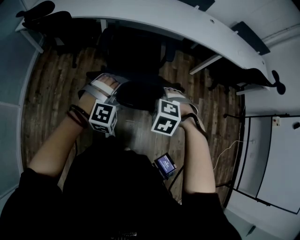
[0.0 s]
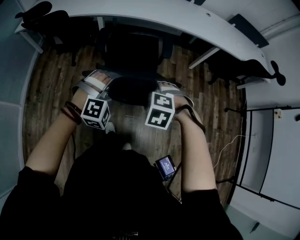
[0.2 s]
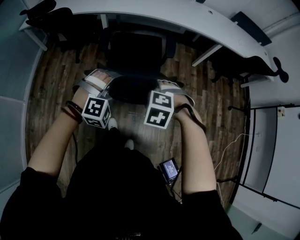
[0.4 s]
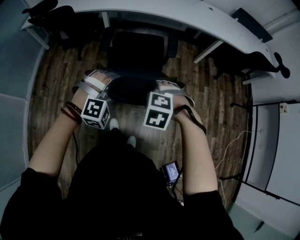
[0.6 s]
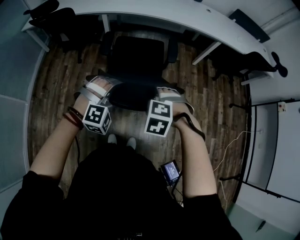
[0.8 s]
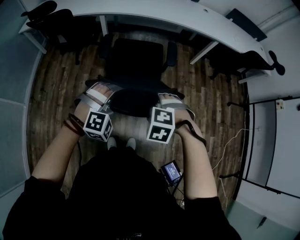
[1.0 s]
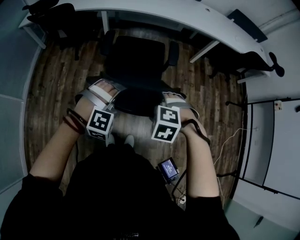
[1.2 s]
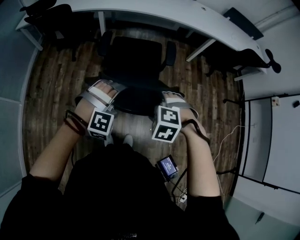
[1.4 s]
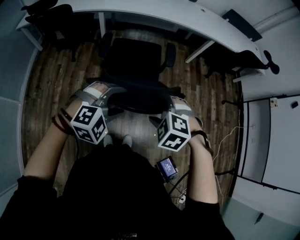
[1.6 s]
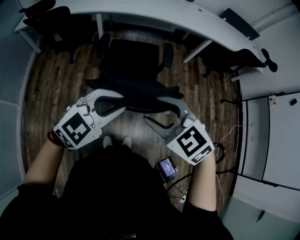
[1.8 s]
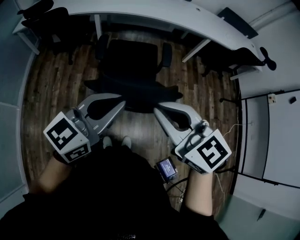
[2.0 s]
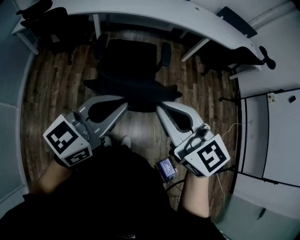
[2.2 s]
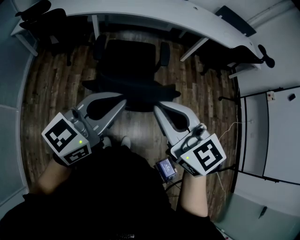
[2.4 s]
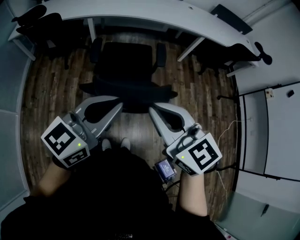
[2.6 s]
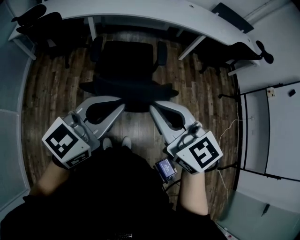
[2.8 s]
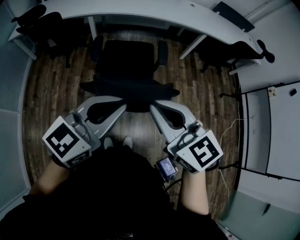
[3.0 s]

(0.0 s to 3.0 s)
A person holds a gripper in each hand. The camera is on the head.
0.0 s - 1.6 s: The two grippers go roughly 20 cm backward. The left gripper rotates approximately 20 degrees.
1.6 s - 3.0 s: The two grippers go some 15 cm upward. The right gripper tilts its fingers some 50 degrees upward, and closes up; the left gripper twists roughly 50 degrees counterclockwise, seen from behind, and closes its fingers.

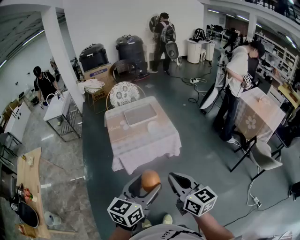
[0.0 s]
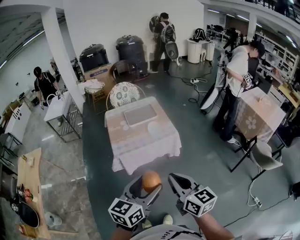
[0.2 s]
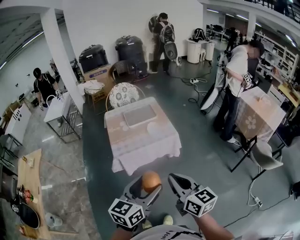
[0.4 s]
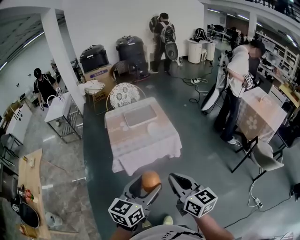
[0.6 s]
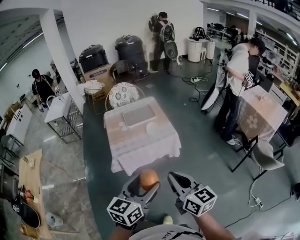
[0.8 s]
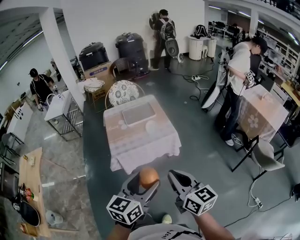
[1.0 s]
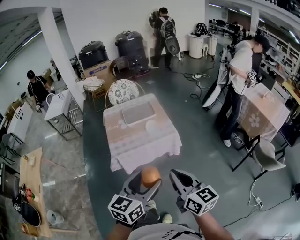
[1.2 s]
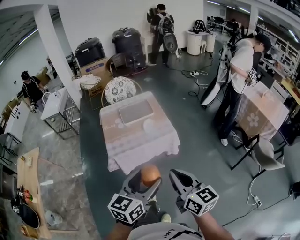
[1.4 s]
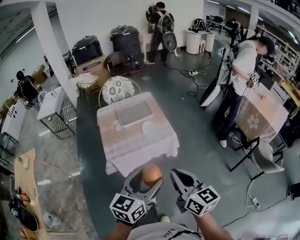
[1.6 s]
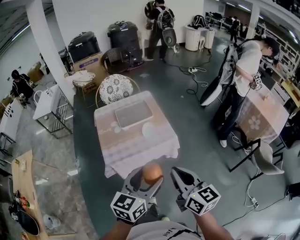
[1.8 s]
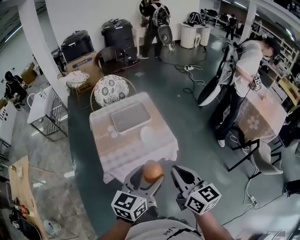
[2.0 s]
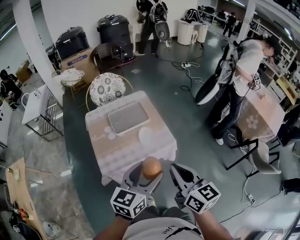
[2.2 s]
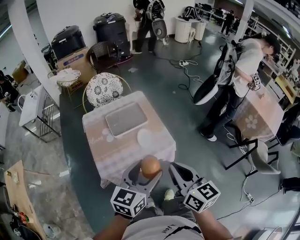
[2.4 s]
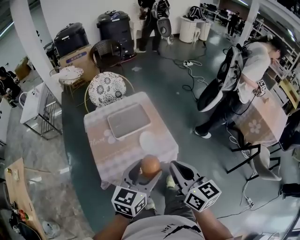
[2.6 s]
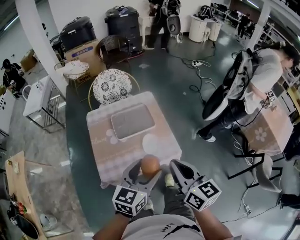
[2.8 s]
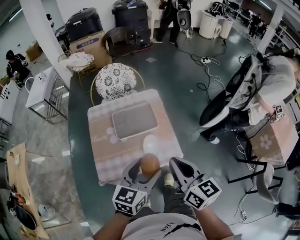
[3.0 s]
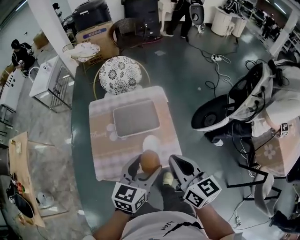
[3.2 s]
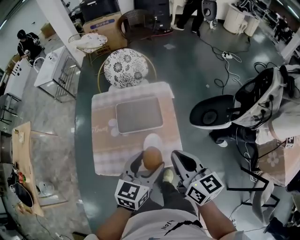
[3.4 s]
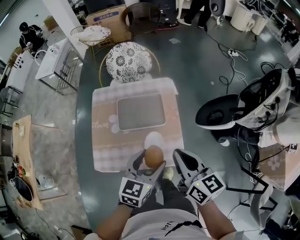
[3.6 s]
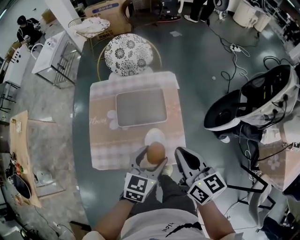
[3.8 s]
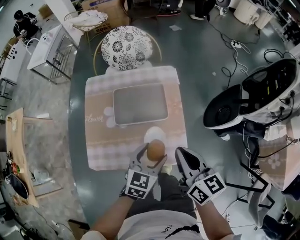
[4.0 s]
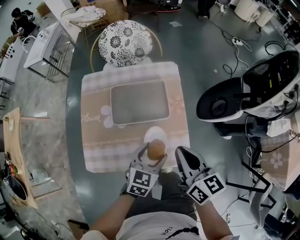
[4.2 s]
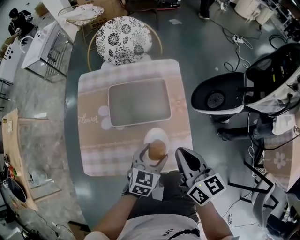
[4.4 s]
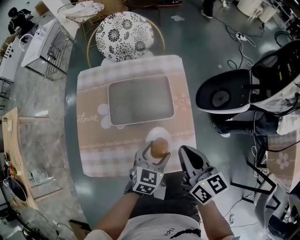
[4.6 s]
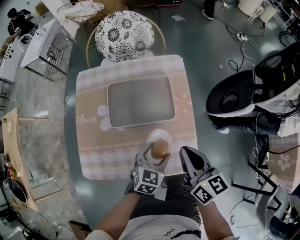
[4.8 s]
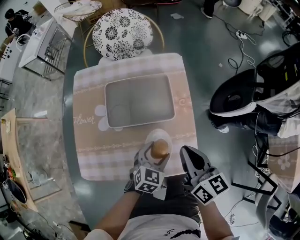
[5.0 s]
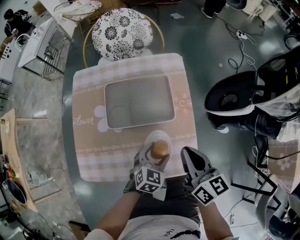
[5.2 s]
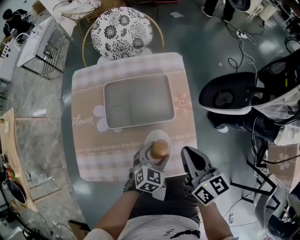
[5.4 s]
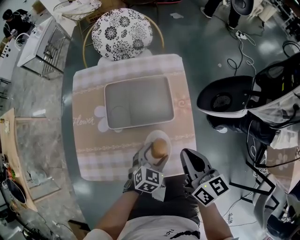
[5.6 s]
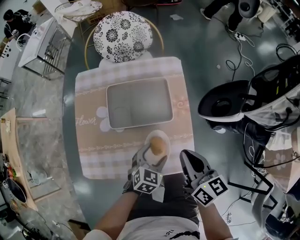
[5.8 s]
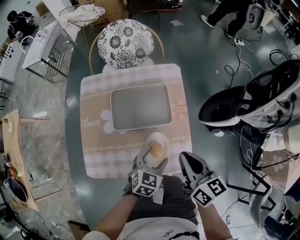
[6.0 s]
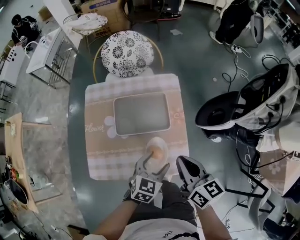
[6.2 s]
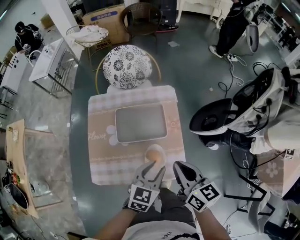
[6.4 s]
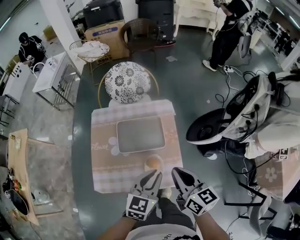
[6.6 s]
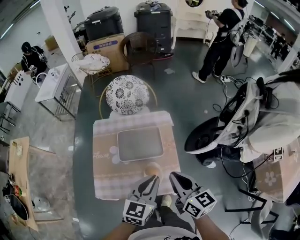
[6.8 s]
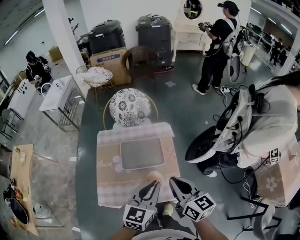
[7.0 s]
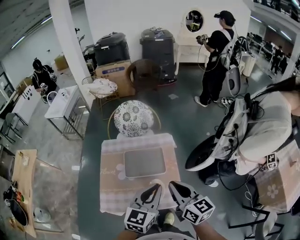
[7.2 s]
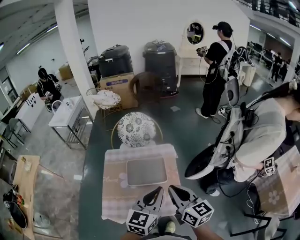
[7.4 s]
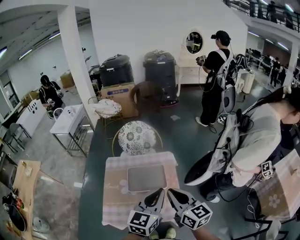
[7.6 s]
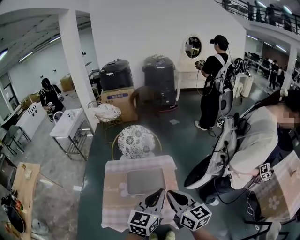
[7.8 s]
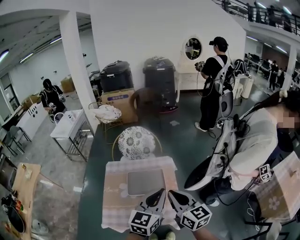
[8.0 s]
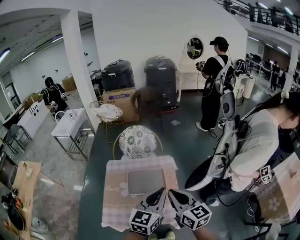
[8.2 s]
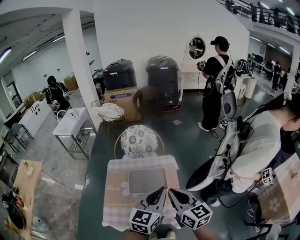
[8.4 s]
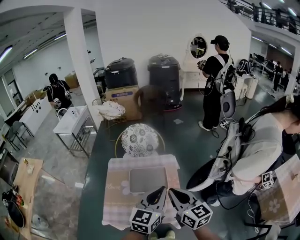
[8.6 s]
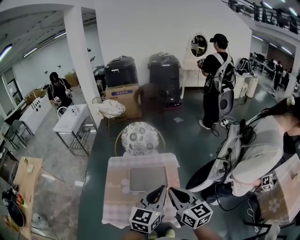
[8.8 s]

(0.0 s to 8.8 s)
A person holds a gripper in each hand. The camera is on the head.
0.0 s - 1.4 s: Both grippers travel together forward, roughly 5 cm.
1.4 s - 3.0 s: The two grippers go some 35 cm forward.
3.0 s - 4.4 s: Both grippers move downward and forward, about 25 cm.
4.4 s - 5.8 s: The left gripper heads downward, covering some 5 cm.
5.8 s - 7.4 s: The right gripper goes some 25 cm upward, and turns by roughly 20 degrees, while the left gripper shifts some 40 cm upward, tilts its fingers some 30 degrees upward, and closes.
7.4 s - 8.8 s: The grippers move only a little.

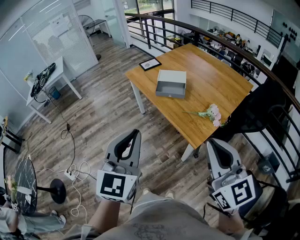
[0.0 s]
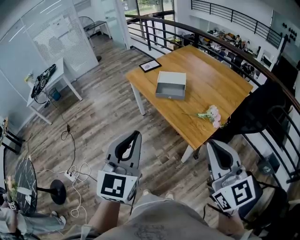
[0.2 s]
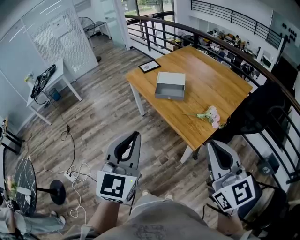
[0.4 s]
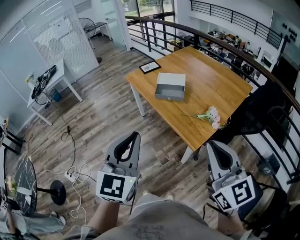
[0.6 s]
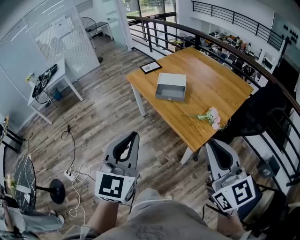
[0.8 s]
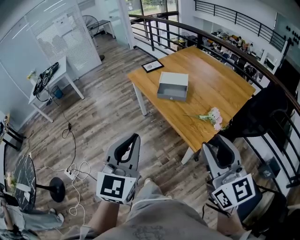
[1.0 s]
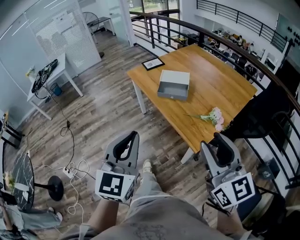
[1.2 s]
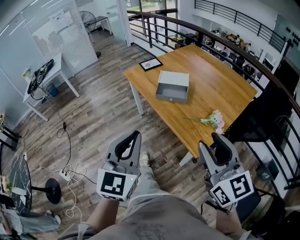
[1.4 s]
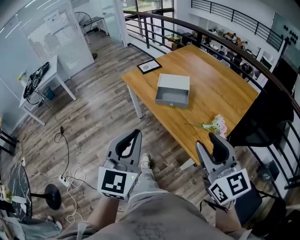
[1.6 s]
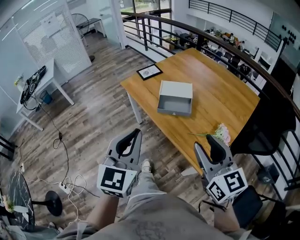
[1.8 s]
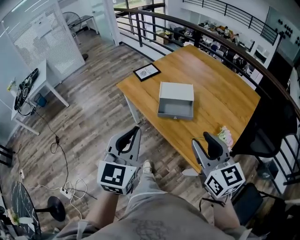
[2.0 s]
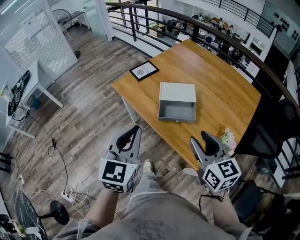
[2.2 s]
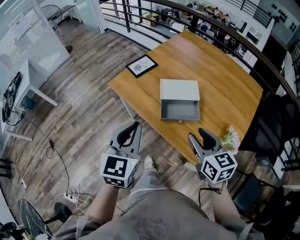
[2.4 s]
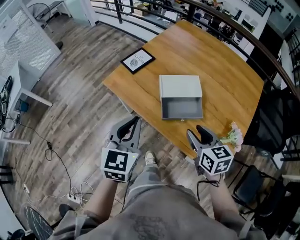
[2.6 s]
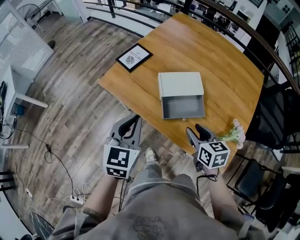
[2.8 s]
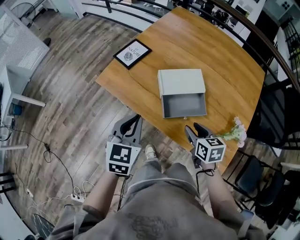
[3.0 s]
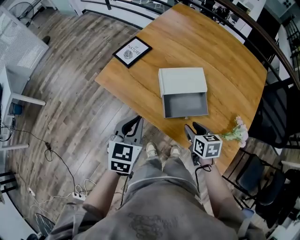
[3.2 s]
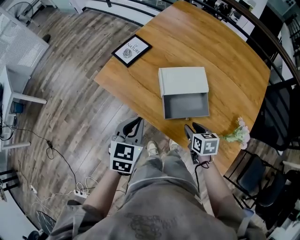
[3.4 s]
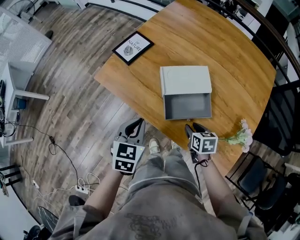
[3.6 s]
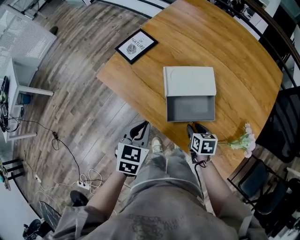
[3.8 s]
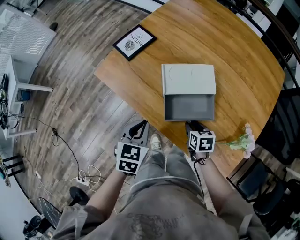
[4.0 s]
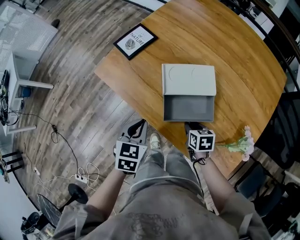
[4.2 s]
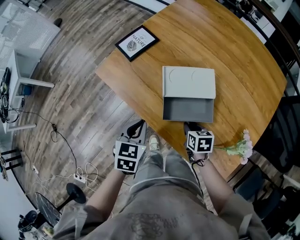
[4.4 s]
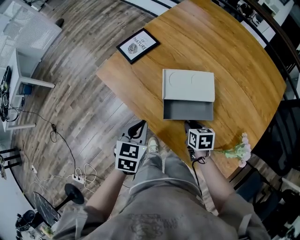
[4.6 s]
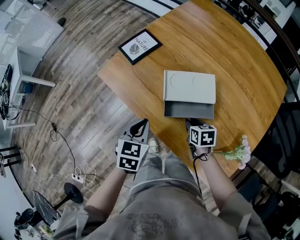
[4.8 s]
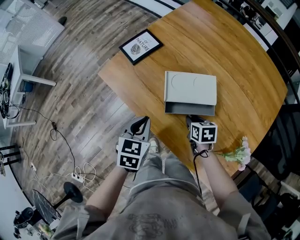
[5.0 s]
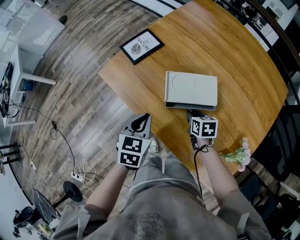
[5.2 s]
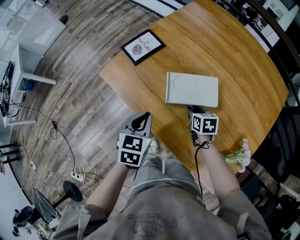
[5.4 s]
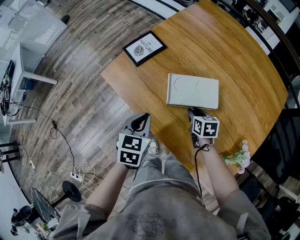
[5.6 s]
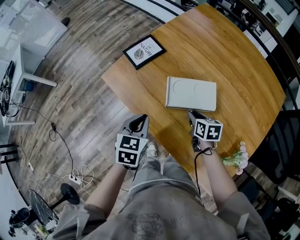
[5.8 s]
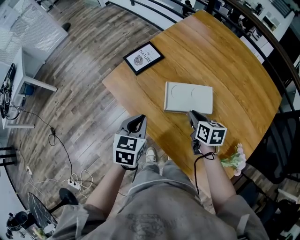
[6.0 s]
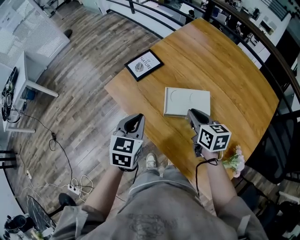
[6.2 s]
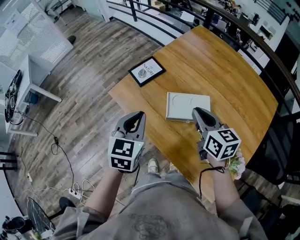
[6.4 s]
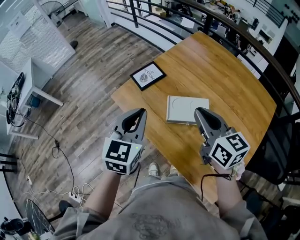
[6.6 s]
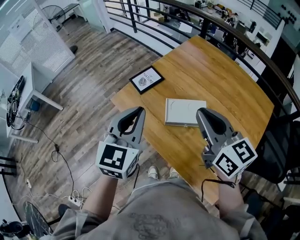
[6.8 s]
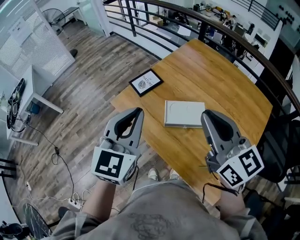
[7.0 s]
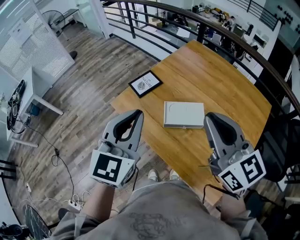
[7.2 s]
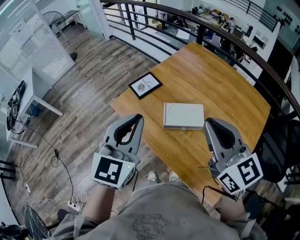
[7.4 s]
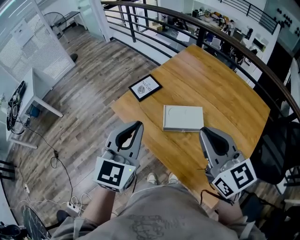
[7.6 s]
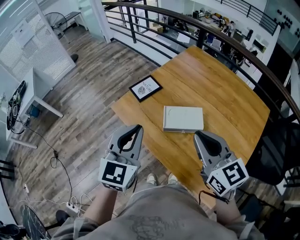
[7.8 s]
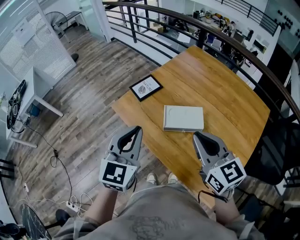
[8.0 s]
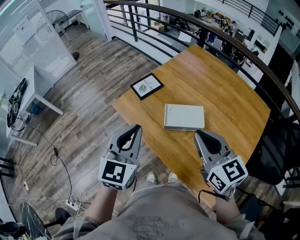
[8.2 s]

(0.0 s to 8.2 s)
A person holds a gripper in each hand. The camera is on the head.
0.0 s - 1.6 s: Both grippers travel together forward and downward, about 15 cm. The right gripper opens its fingers.
1.6 s - 3.2 s: The right gripper is displaced downward and forward by about 40 cm, and points its fingers roughly 50 degrees further downward. Meanwhile the left gripper heads forward and downward, covering about 40 cm, and rotates roughly 40 degrees.
3.2 s - 5.0 s: The right gripper moves forward and downward, some 15 cm, and closes; the left gripper heads downward, covering approximately 5 cm.
5.0 s - 6.6 s: The right gripper travels upward by some 35 cm, and points its fingers roughly 40 degrees further upward; the left gripper shifts approximately 20 cm upward, and swivels about 30 degrees.
6.6 s - 8.2 s: The grippers both shift backward by some 10 cm. The right gripper moves roughly 10 cm upward and comes back.

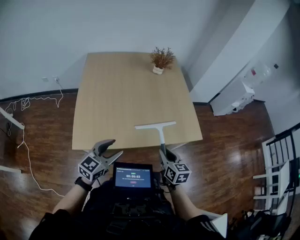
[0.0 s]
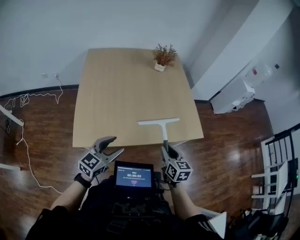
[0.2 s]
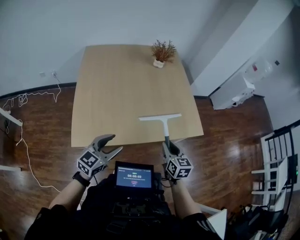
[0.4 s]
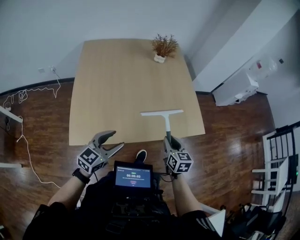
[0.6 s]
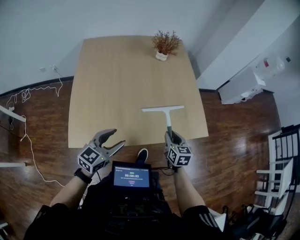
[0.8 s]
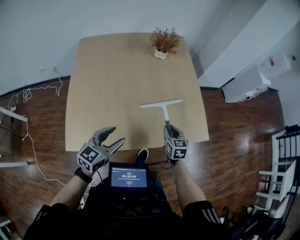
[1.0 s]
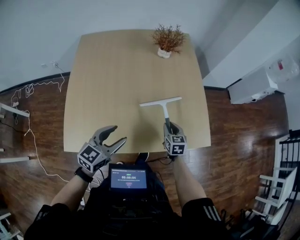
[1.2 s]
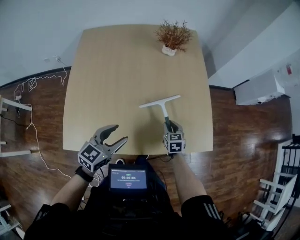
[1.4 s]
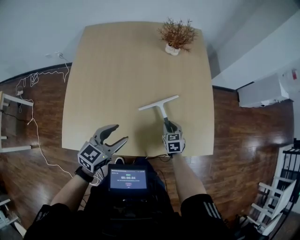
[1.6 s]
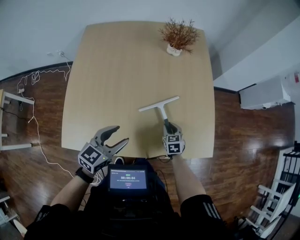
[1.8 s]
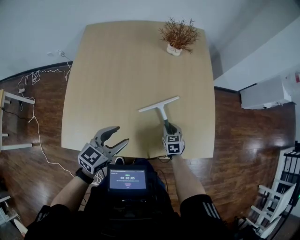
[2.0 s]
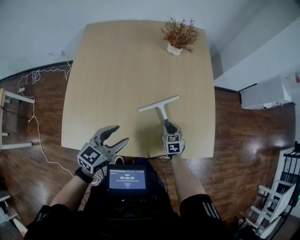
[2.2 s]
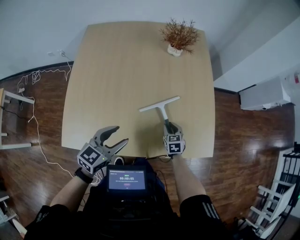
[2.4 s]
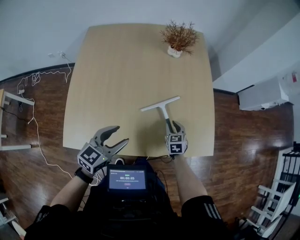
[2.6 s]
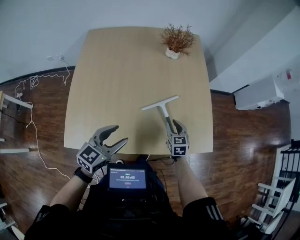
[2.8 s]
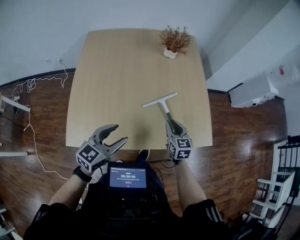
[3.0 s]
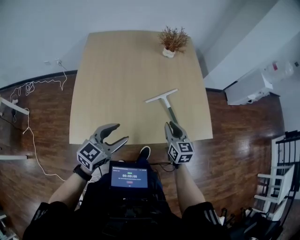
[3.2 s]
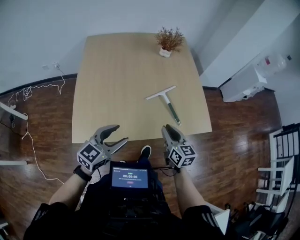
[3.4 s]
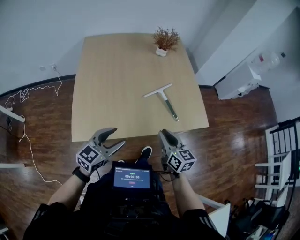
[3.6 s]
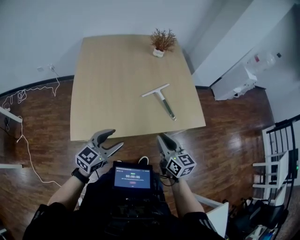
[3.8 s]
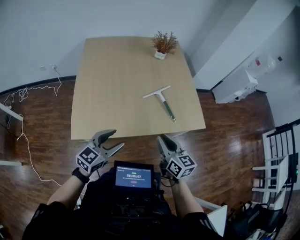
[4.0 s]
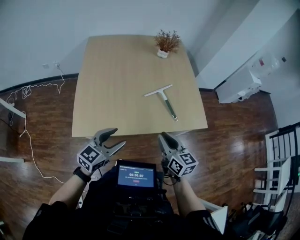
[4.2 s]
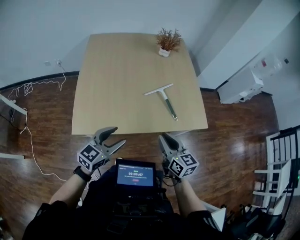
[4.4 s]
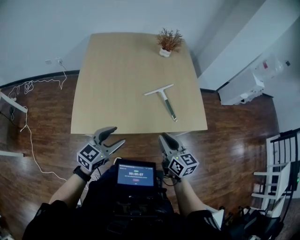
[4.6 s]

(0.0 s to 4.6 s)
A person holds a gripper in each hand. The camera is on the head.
0.0 s - 1.6 s: The left gripper shifts roughly 20 cm forward, while the right gripper shifts roughly 35 cm forward and downward, and turns by about 30 degrees.
1.6 s - 3.0 s: The right gripper shifts about 15 cm upward. Meanwhile the left gripper moves backward, approximately 5 cm.
3.0 s - 4.6 s: The left gripper moves backward, approximately 15 cm; the right gripper heads backward and upward, covering some 25 cm.
